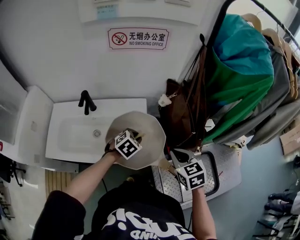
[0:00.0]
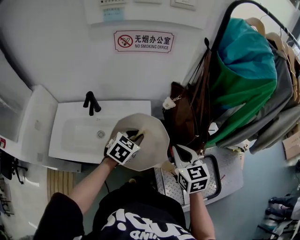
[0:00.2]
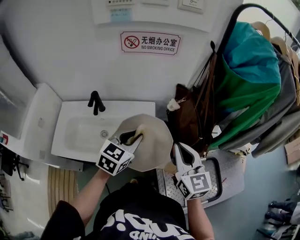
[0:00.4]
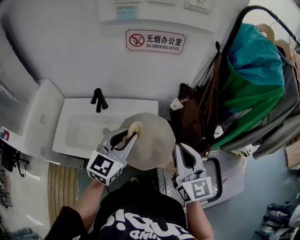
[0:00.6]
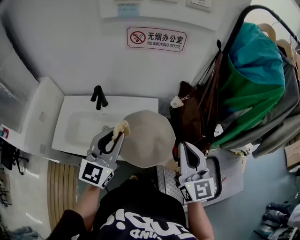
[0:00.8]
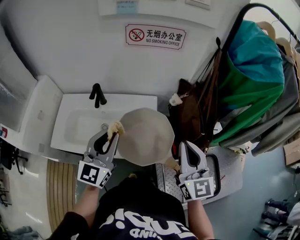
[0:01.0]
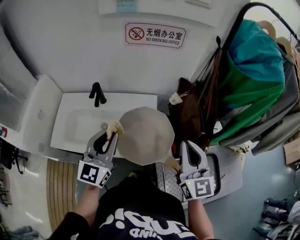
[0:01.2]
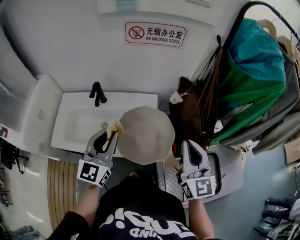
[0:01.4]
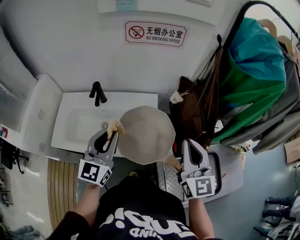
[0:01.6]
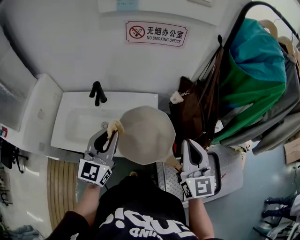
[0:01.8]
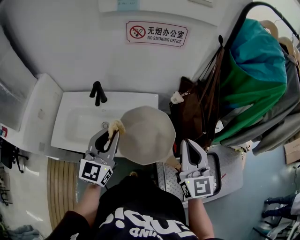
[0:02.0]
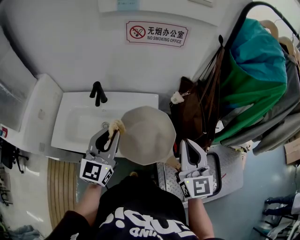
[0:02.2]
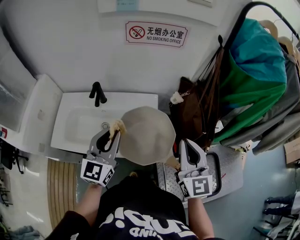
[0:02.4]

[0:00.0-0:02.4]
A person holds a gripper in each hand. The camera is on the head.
0:00.0 to 0:01.2: The left gripper moves upward and to the left, about 25 cm, and angles its fingers upward, by approximately 60 degrees. Meanwhile the right gripper shifts roughly 15 cm upward, and points its fingers approximately 40 degrees further upward.
0:01.2 to 0:02.4: The grippers stay close to where they were, moving slightly.

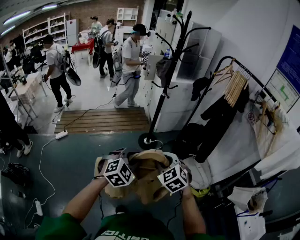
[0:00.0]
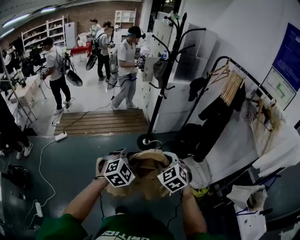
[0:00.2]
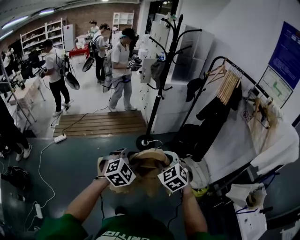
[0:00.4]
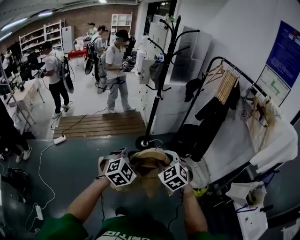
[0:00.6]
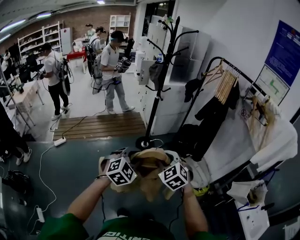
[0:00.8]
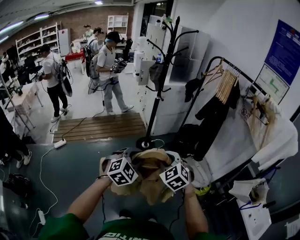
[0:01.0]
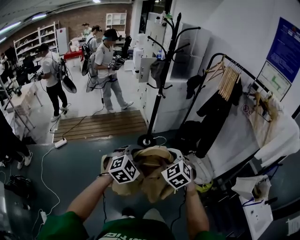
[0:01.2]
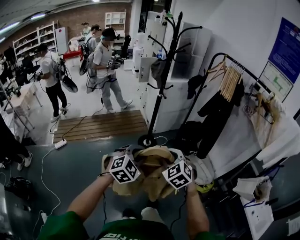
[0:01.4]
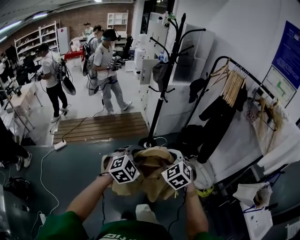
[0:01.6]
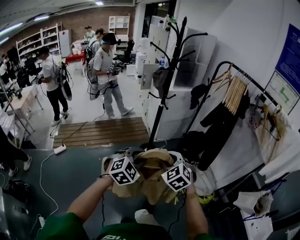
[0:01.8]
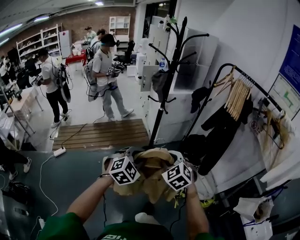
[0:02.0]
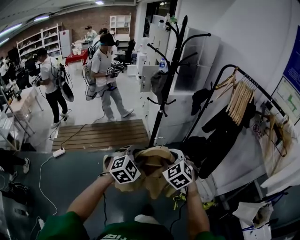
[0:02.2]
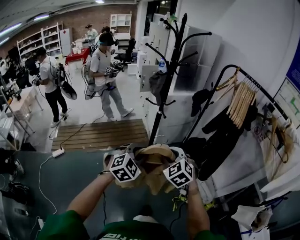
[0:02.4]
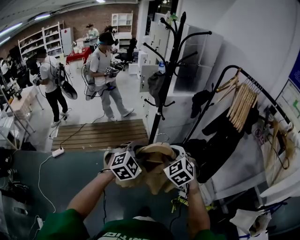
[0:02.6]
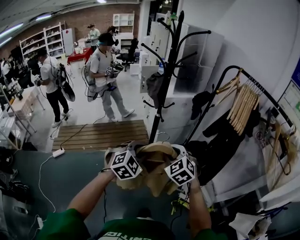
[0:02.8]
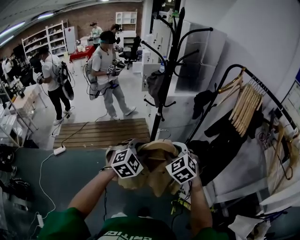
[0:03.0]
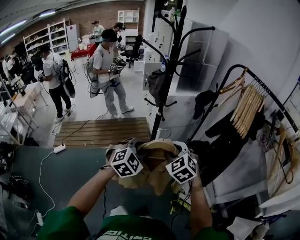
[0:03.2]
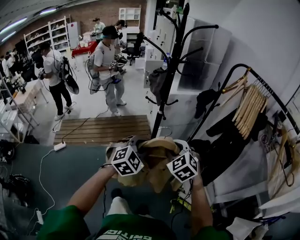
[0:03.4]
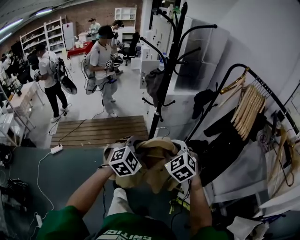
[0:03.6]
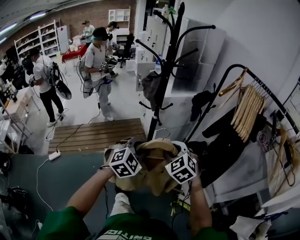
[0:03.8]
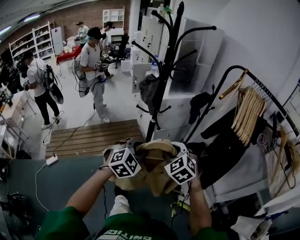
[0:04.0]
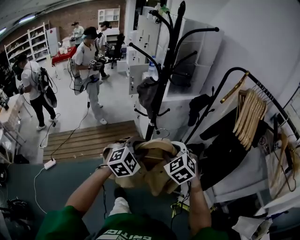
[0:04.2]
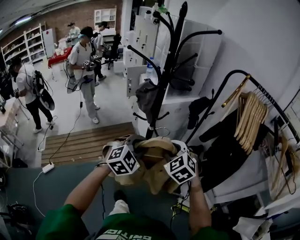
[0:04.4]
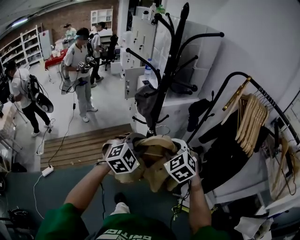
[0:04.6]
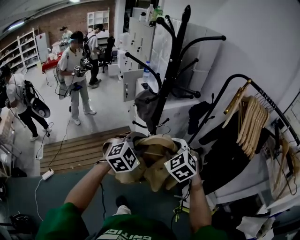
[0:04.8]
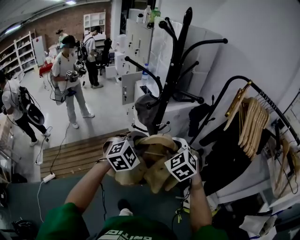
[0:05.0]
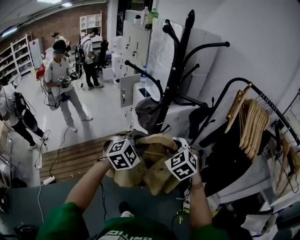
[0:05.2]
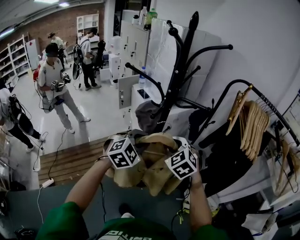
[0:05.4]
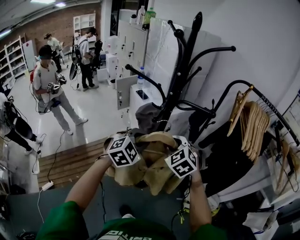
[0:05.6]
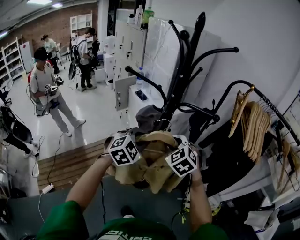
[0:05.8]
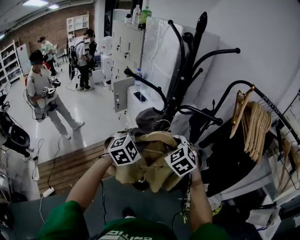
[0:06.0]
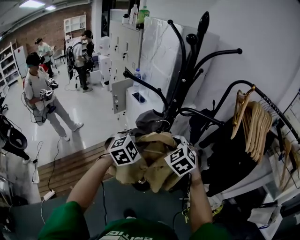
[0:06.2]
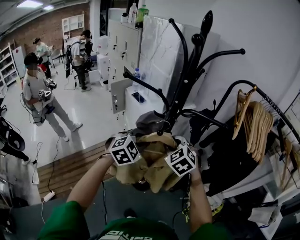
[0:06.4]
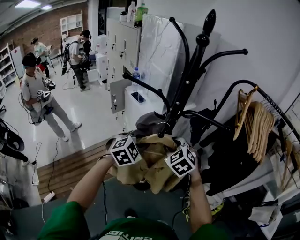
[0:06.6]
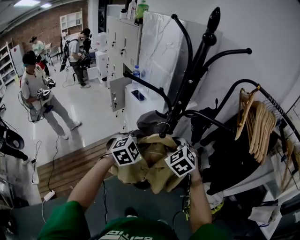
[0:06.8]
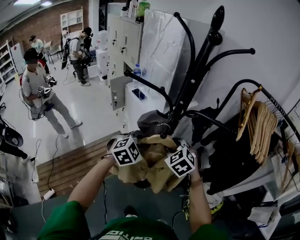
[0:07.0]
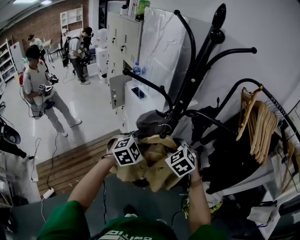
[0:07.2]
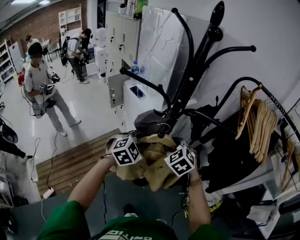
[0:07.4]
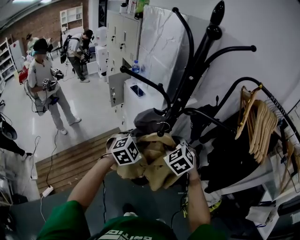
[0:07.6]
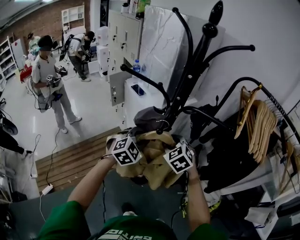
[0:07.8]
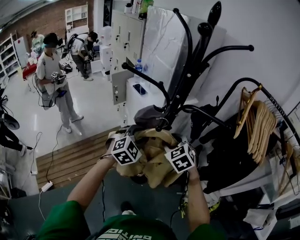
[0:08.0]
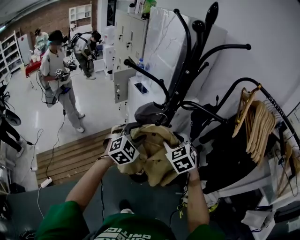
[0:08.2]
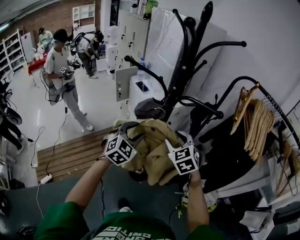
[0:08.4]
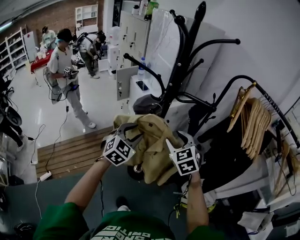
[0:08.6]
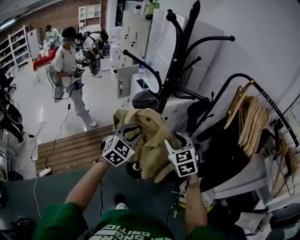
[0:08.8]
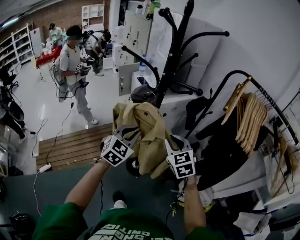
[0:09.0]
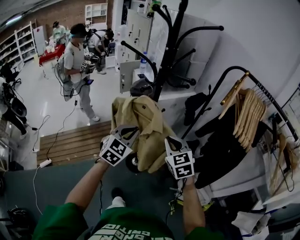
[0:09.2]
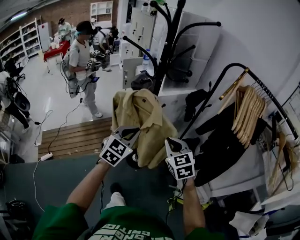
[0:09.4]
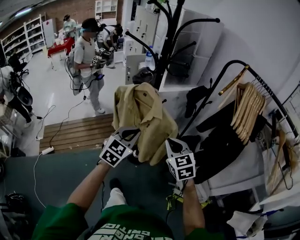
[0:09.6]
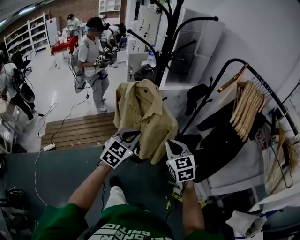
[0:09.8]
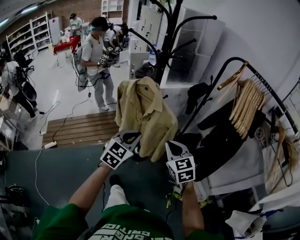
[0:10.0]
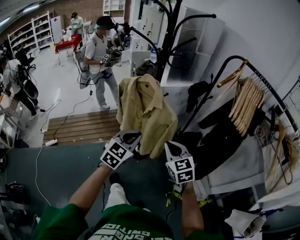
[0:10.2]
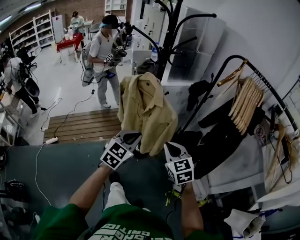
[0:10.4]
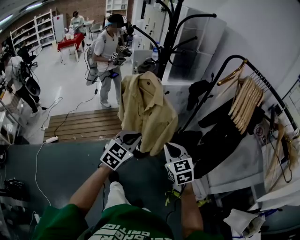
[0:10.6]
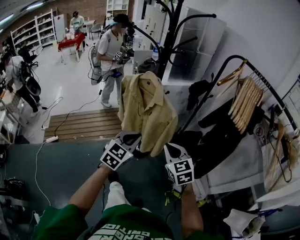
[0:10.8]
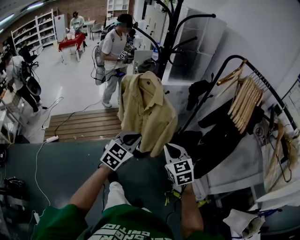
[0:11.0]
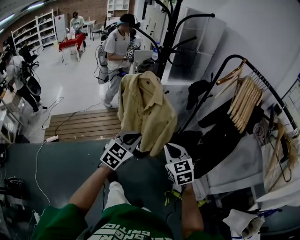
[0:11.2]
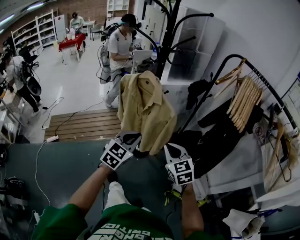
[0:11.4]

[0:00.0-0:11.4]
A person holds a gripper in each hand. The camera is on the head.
0:00.0 to 0:01.4: The grippers stay close to where they were, moving slightly.
0:01.4 to 0:02.8: The grippers both shift forward by about 25 cm.
0:02.8 to 0:04.2: Both grippers move forward, roughly 15 cm.
0:04.2 to 0:05.6: The grippers both shift forward and to the left by roughly 20 cm.
0:05.6 to 0:07.2: Both grippers move forward and downward, approximately 10 cm.
0:07.2 to 0:08.6: The right gripper travels to the right, backward and upward by approximately 10 cm, and opens. Meanwhile the left gripper heads backward, covering approximately 5 cm, rotates approximately 30 degrees, and opens its fingers.
0:08.6 to 0:10.0: The two grippers go approximately 25 cm backward and to the right. The left gripper closes its fingers, while the right gripper closes its fingers.
0:10.0 to 0:11.4: The left gripper ends up about 5 cm from where it was; the right gripper goes some 5 cm backward.

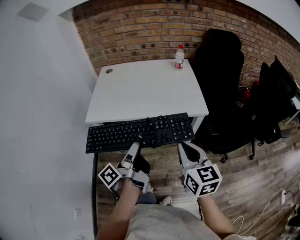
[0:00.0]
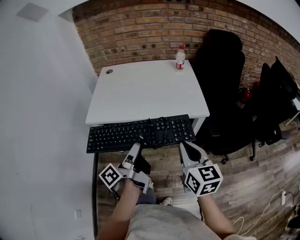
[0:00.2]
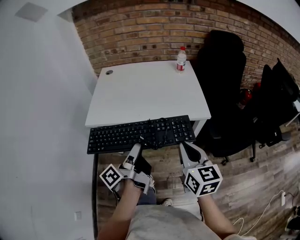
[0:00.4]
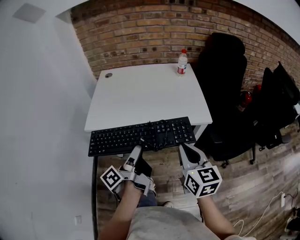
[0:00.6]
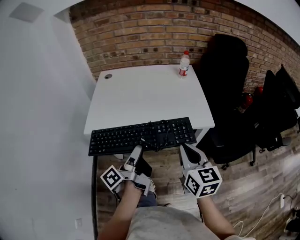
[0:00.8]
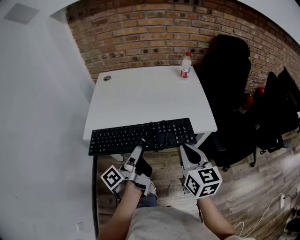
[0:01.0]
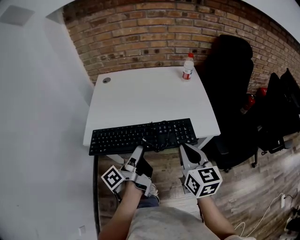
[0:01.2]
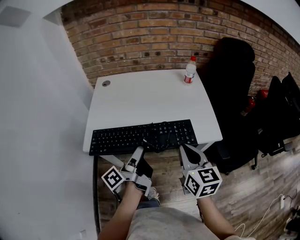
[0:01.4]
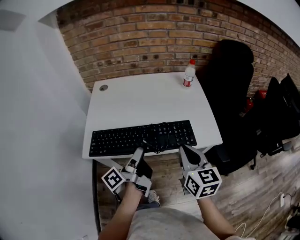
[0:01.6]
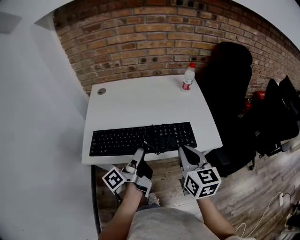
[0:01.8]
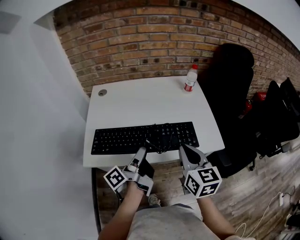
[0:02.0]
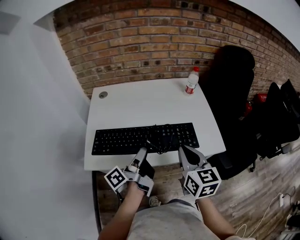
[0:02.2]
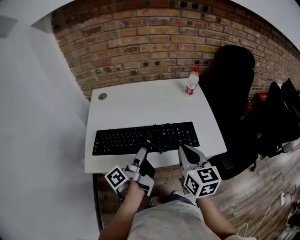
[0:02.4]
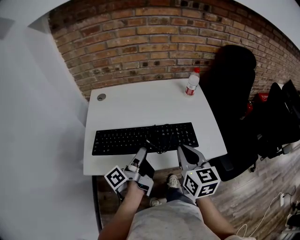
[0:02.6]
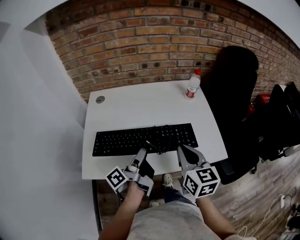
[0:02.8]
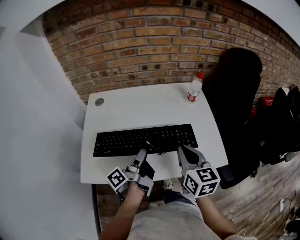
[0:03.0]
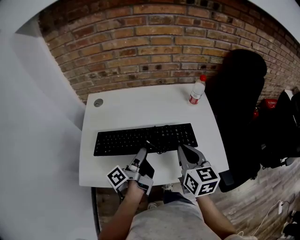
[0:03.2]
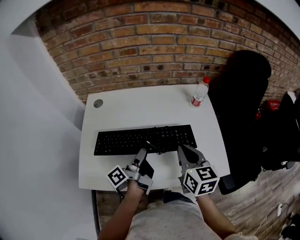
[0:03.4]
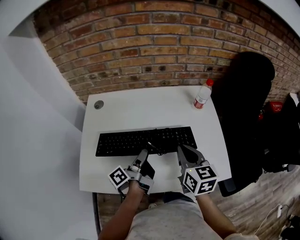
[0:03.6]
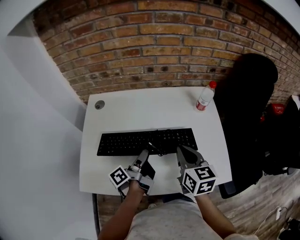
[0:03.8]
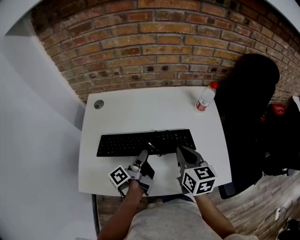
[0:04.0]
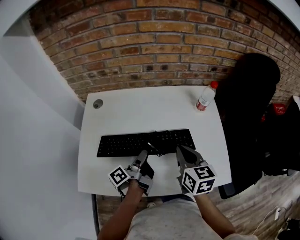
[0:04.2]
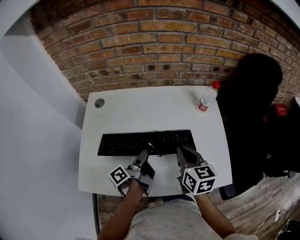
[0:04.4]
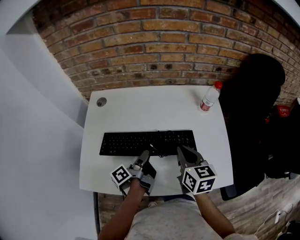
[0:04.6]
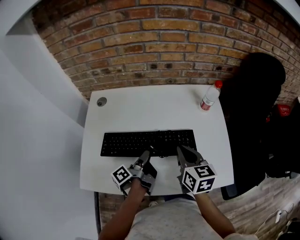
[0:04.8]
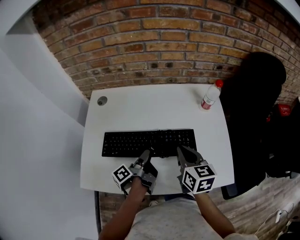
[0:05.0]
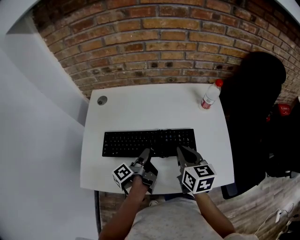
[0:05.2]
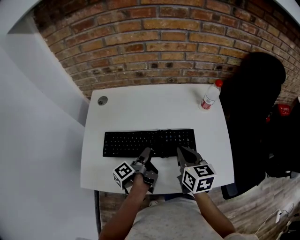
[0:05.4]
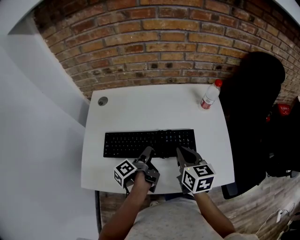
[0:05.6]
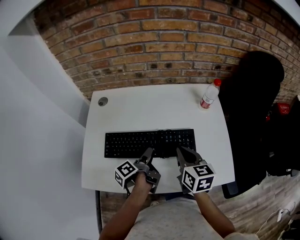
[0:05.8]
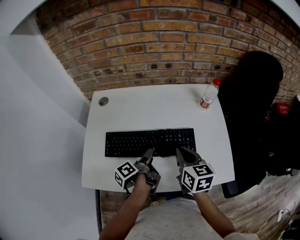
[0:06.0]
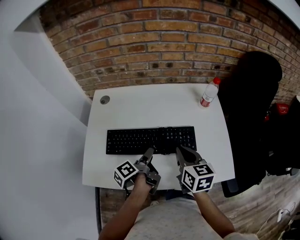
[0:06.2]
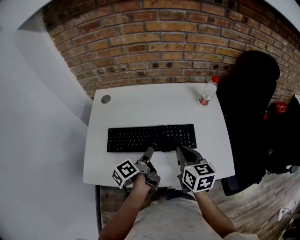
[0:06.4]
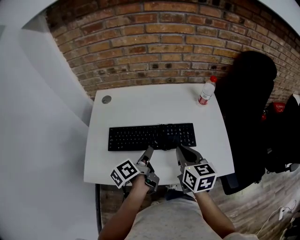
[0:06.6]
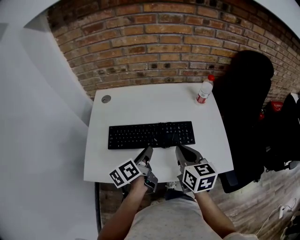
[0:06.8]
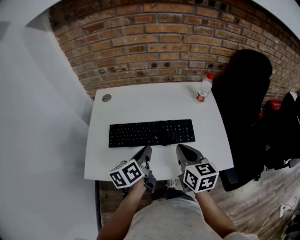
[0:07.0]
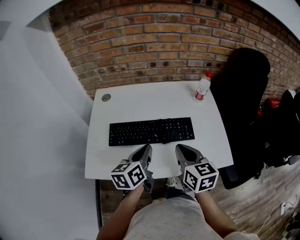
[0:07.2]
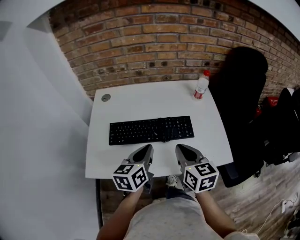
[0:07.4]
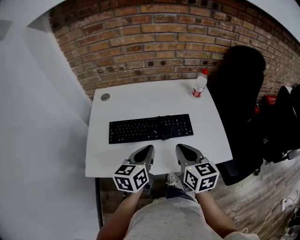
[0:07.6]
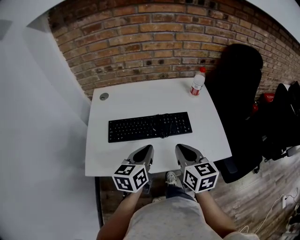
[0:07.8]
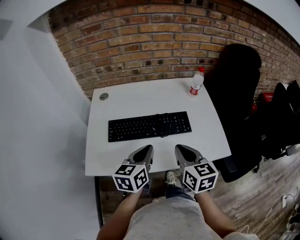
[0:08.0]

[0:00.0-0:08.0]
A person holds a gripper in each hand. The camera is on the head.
0:00.0 to 0:01.6: The right gripper shifts by about 25 cm.
0:01.6 to 0:03.2: The right gripper ends up some 20 cm from where it was.
0:03.2 to 0:04.8: The right gripper changes place by some 10 cm.
0:06.4 to 0:08.0: The right gripper shifts by approximately 10 cm.

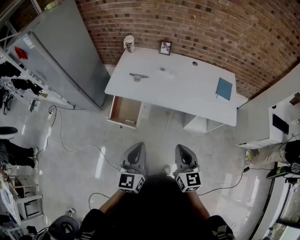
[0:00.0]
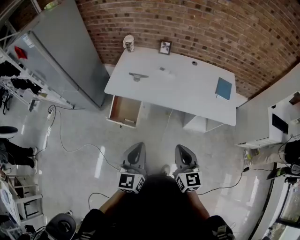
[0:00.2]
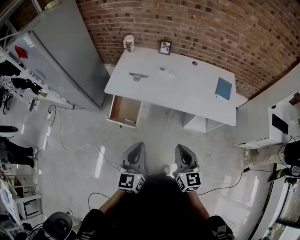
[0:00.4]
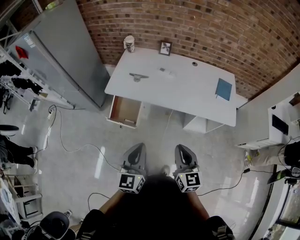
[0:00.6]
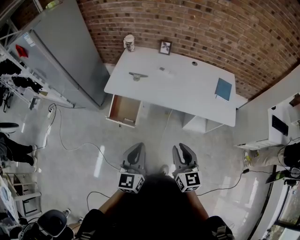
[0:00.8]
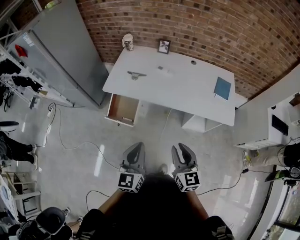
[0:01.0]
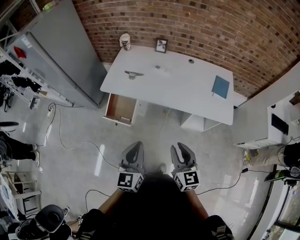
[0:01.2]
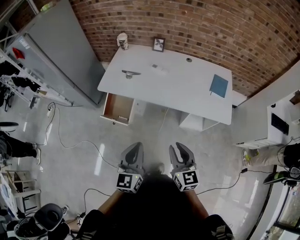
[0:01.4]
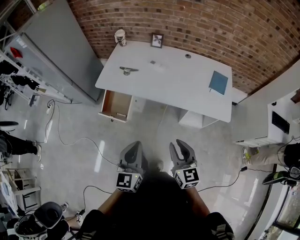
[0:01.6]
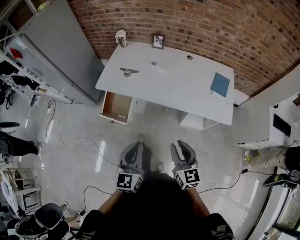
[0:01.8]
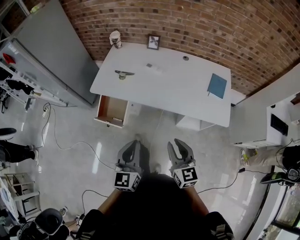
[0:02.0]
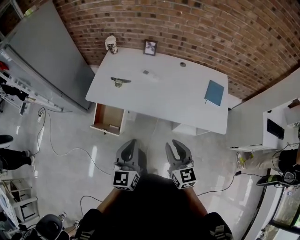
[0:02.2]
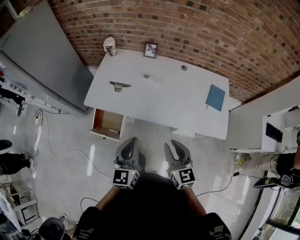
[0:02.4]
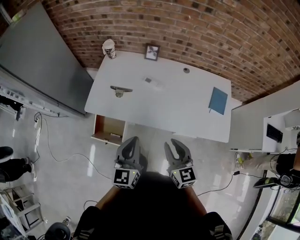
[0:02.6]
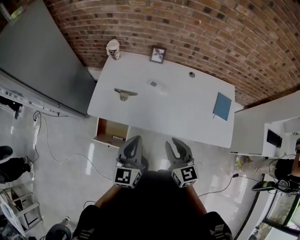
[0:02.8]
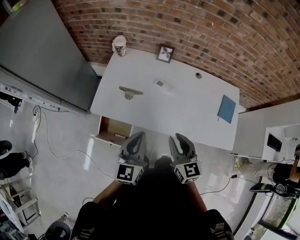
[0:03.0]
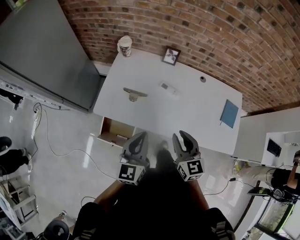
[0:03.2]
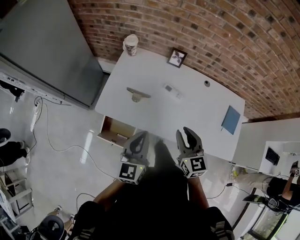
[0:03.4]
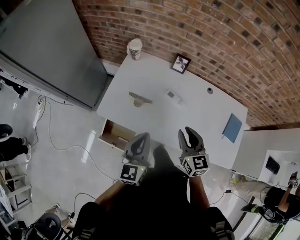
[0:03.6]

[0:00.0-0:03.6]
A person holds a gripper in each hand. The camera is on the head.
0:00.0 to 0:01.8: Both grippers travel together to the right, roughly 10 cm.
0:01.8 to 0:03.6: Both grippers travel together forward, about 40 cm.
